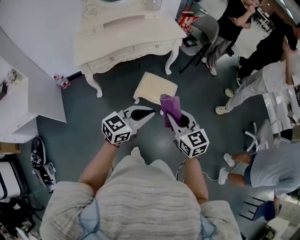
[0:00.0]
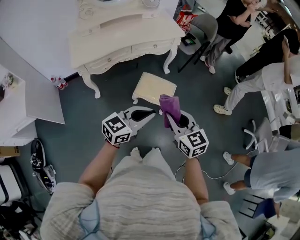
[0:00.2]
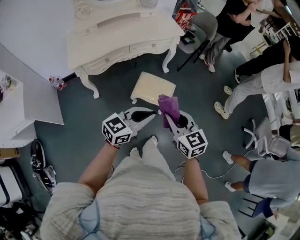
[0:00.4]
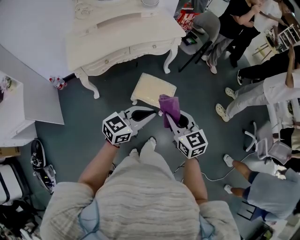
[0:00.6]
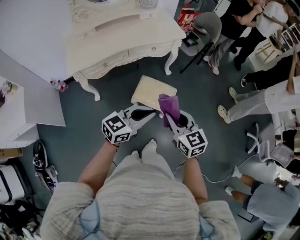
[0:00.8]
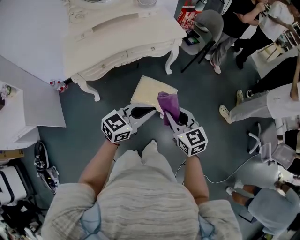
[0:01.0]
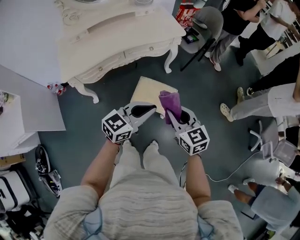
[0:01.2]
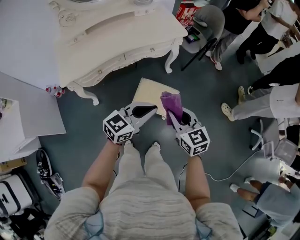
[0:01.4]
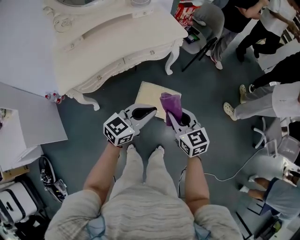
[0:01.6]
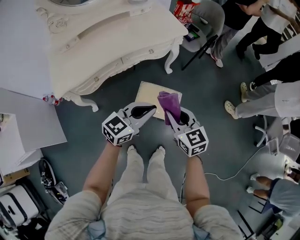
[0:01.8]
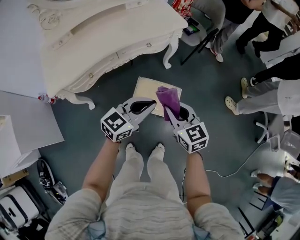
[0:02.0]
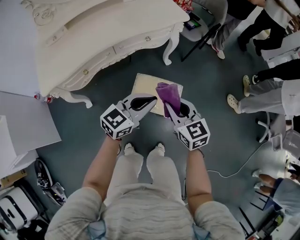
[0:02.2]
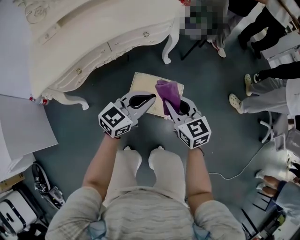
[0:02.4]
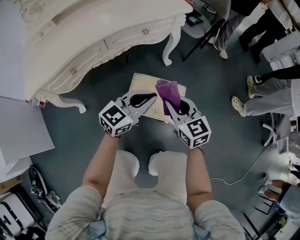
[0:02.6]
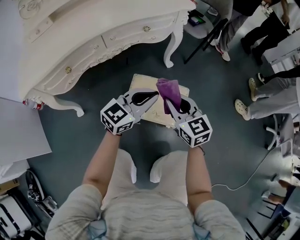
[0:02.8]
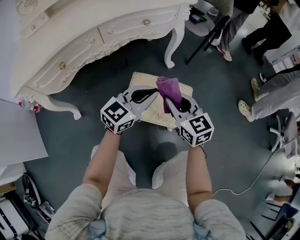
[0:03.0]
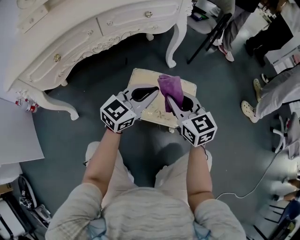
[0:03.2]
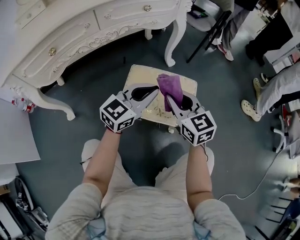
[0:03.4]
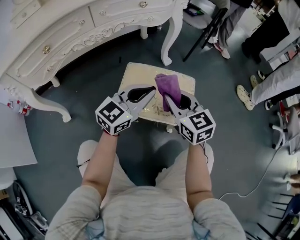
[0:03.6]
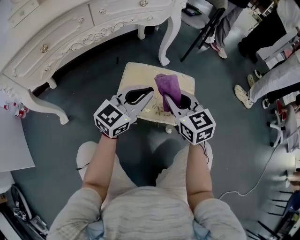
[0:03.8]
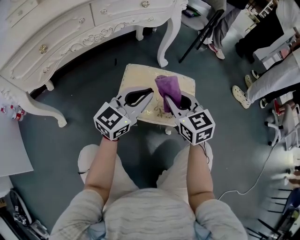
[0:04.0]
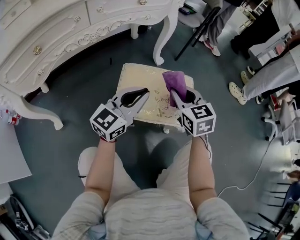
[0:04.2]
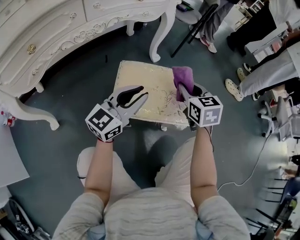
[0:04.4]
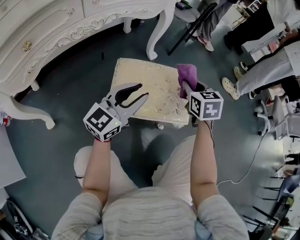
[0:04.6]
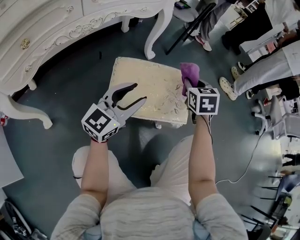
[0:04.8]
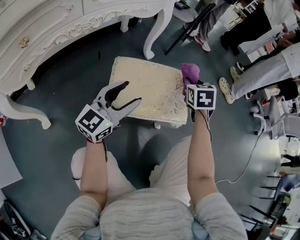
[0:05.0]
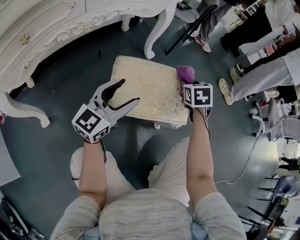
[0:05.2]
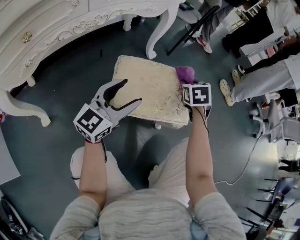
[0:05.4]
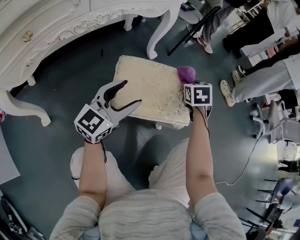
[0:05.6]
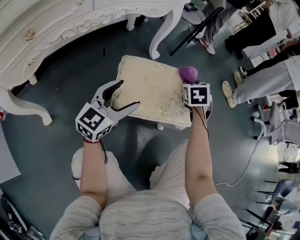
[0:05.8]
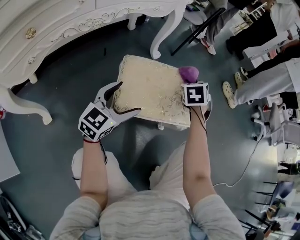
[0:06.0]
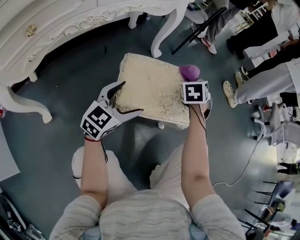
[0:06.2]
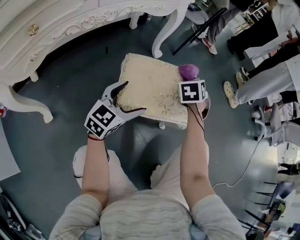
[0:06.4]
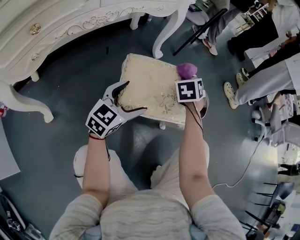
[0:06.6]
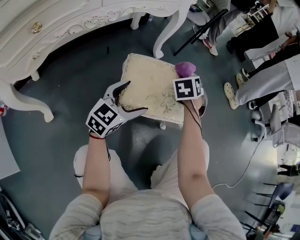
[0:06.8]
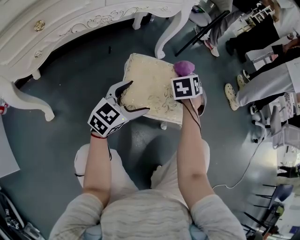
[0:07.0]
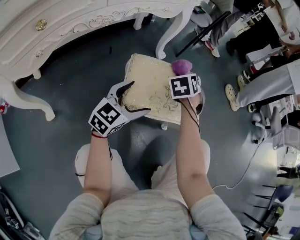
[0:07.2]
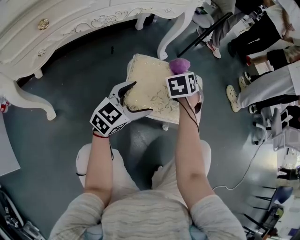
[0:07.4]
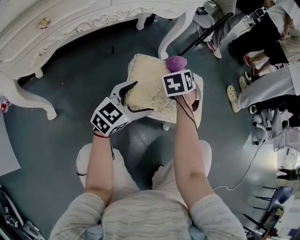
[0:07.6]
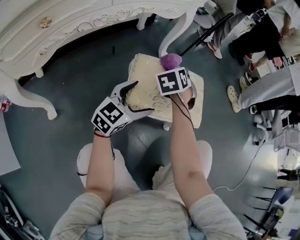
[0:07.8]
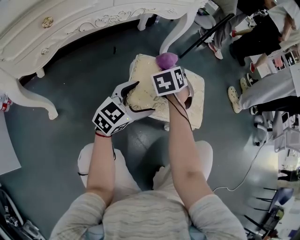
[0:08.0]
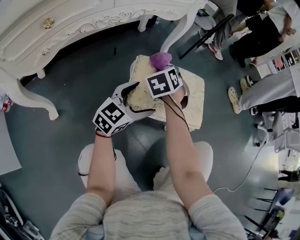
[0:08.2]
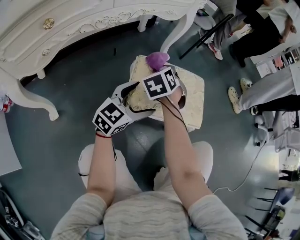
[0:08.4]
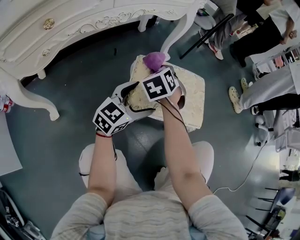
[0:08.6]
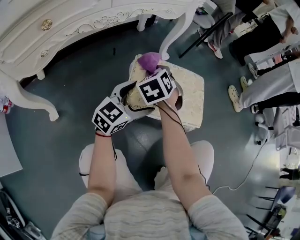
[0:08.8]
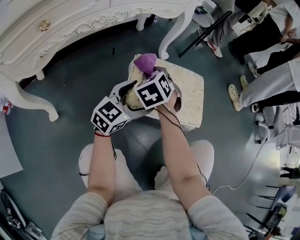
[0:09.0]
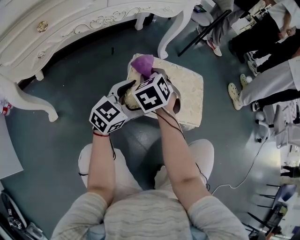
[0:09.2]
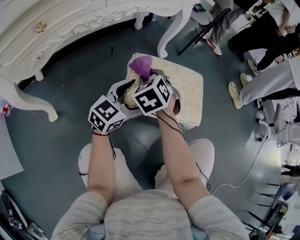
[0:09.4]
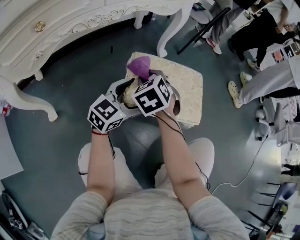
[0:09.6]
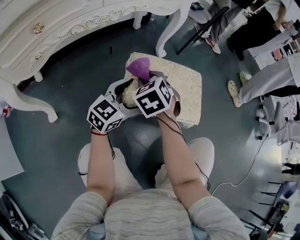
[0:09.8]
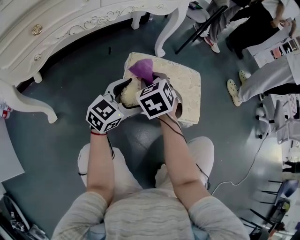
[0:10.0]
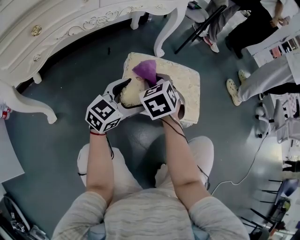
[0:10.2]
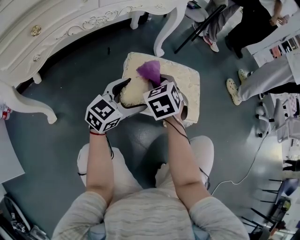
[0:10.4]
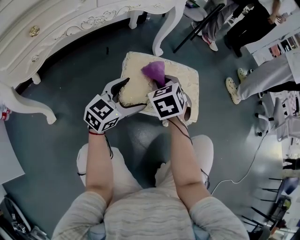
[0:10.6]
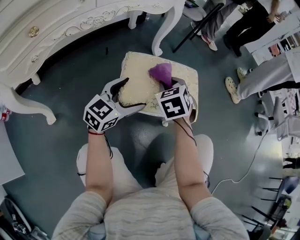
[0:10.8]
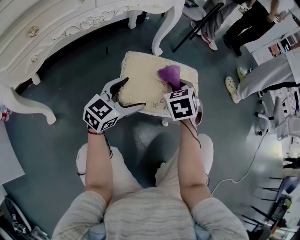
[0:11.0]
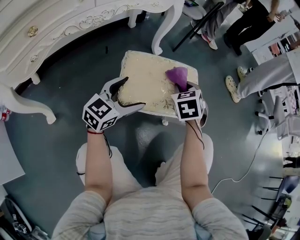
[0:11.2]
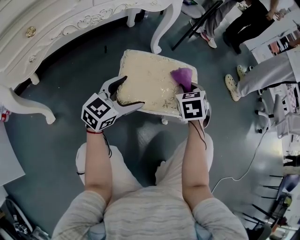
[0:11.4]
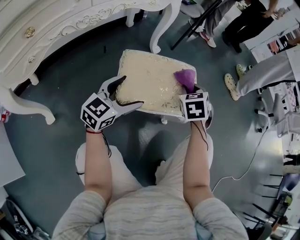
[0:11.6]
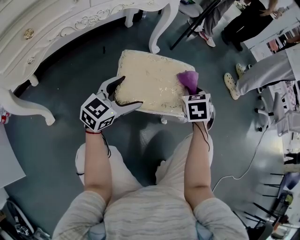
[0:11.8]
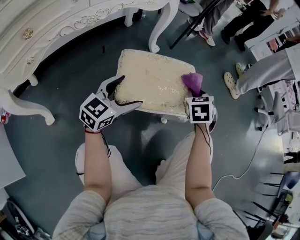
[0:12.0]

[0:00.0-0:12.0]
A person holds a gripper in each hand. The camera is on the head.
0:00.0 to 0:01.6: The grippers both shift forward by roughly 20 cm.
0:01.6 to 0:03.0: The grippers both shift downward by approximately 30 cm.
0:03.0 to 0:04.4: The right gripper is displaced downward, to the right and forward by some 15 cm, and swivels about 30 degrees, while the left gripper is displaced downward by some 10 cm.
0:04.4 to 0:06.0: The right gripper is displaced forward and downward by roughly 10 cm, and changes its angle by roughly 30 degrees; the left gripper shifts about 10 cm downward, and opens up.
0:06.0 to 0:07.6: The right gripper travels to the left and backward by some 10 cm.
0:07.6 to 0:09.0: The right gripper travels backward and to the left by some 15 cm.
0:09.0 to 0:10.4: The right gripper is displaced to the right by about 5 cm.
0:10.4 to 0:12.0: The right gripper shifts about 20 cm to the right, and changes its angle by some 20 degrees.

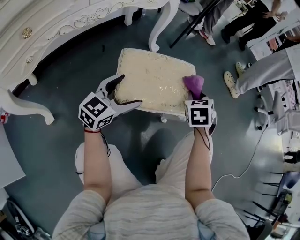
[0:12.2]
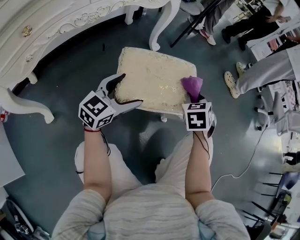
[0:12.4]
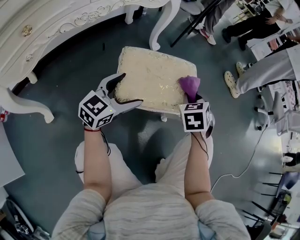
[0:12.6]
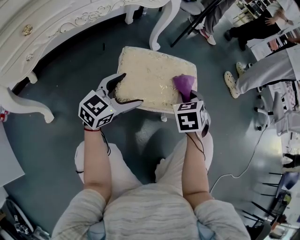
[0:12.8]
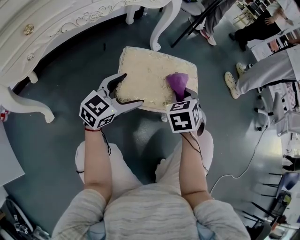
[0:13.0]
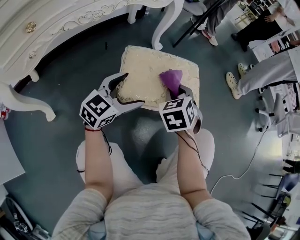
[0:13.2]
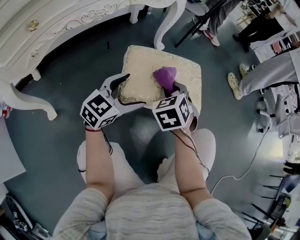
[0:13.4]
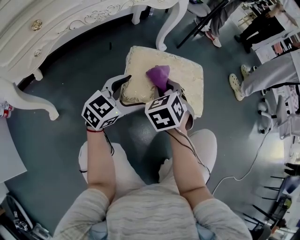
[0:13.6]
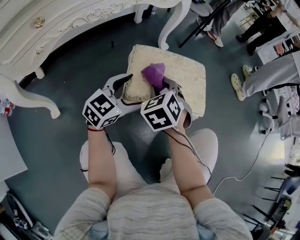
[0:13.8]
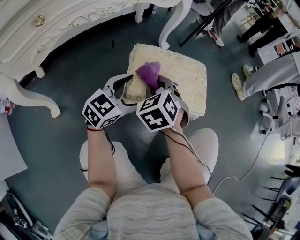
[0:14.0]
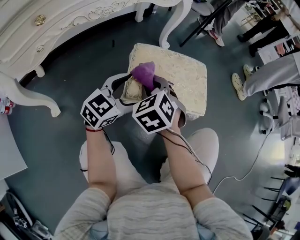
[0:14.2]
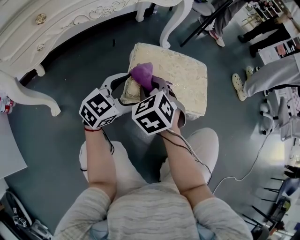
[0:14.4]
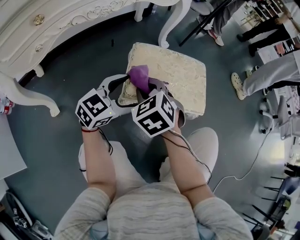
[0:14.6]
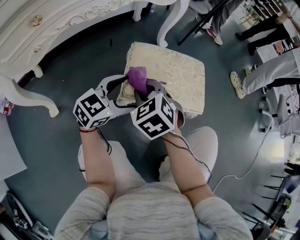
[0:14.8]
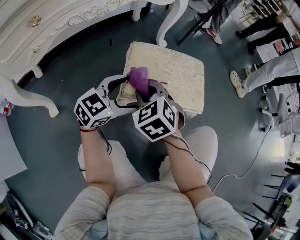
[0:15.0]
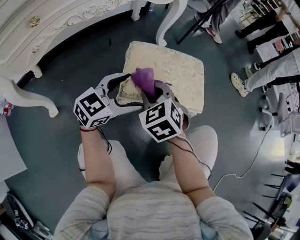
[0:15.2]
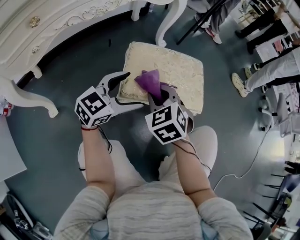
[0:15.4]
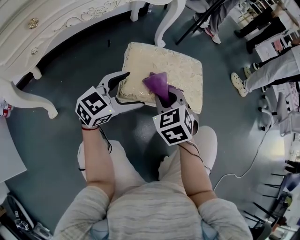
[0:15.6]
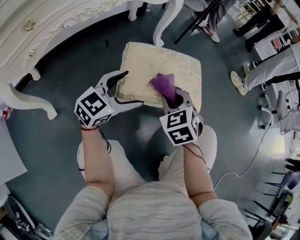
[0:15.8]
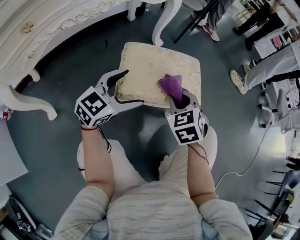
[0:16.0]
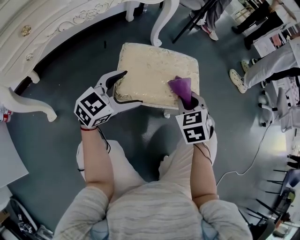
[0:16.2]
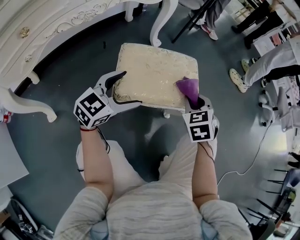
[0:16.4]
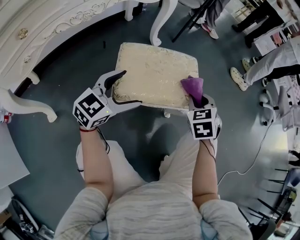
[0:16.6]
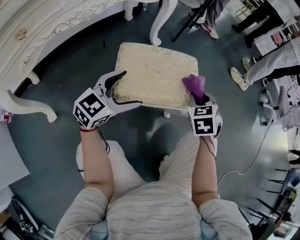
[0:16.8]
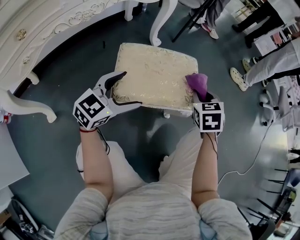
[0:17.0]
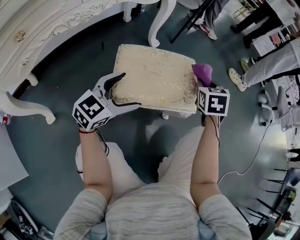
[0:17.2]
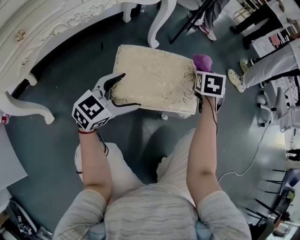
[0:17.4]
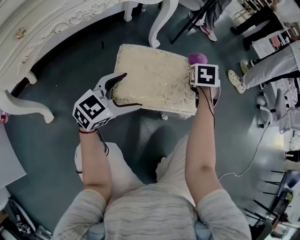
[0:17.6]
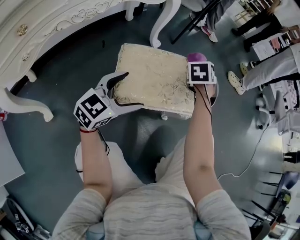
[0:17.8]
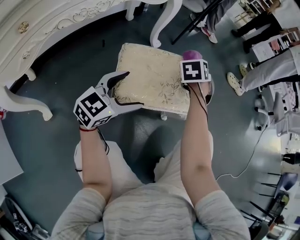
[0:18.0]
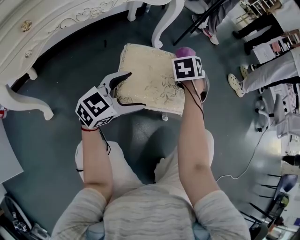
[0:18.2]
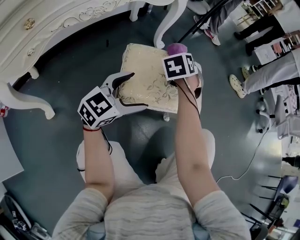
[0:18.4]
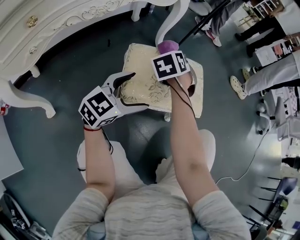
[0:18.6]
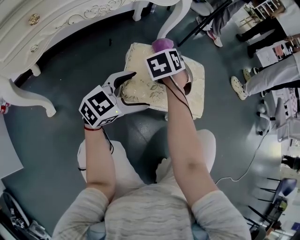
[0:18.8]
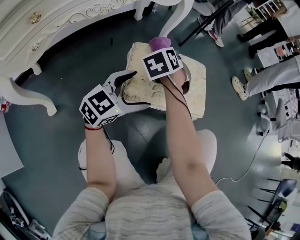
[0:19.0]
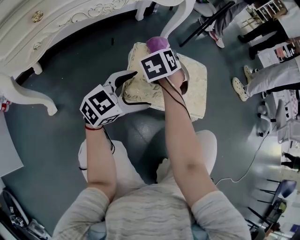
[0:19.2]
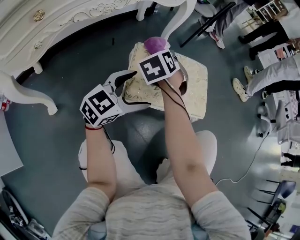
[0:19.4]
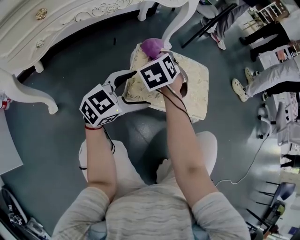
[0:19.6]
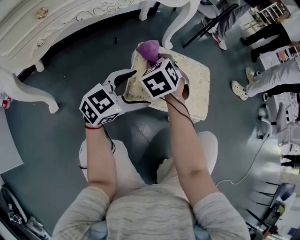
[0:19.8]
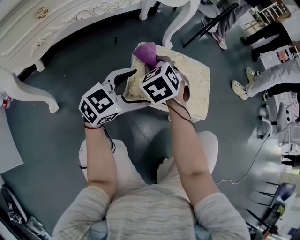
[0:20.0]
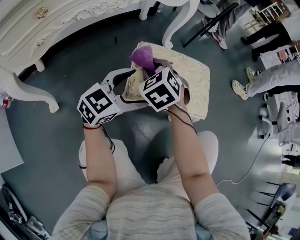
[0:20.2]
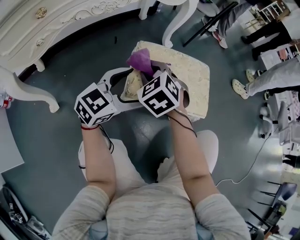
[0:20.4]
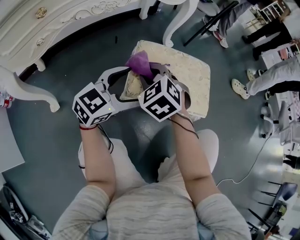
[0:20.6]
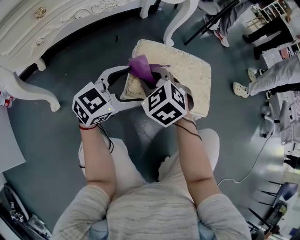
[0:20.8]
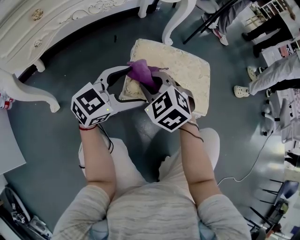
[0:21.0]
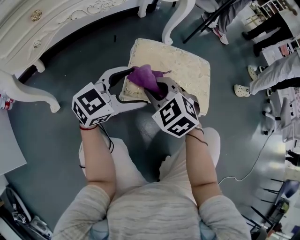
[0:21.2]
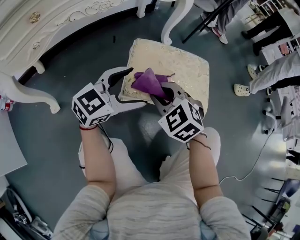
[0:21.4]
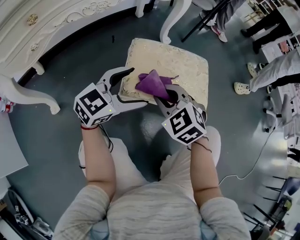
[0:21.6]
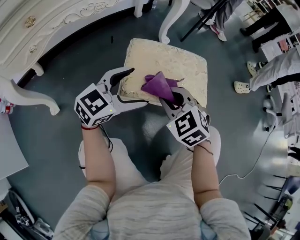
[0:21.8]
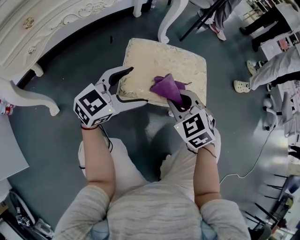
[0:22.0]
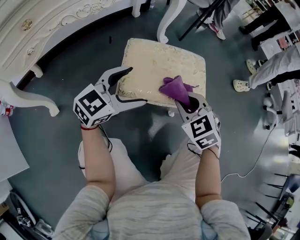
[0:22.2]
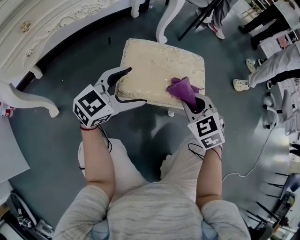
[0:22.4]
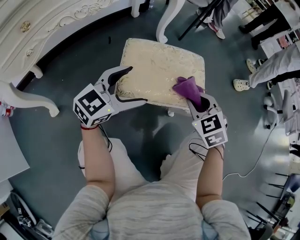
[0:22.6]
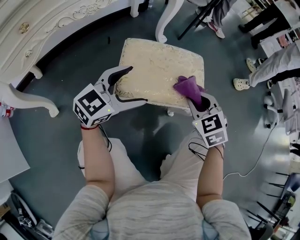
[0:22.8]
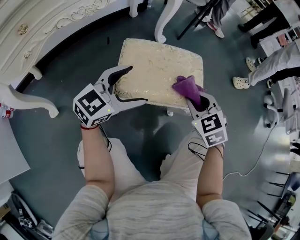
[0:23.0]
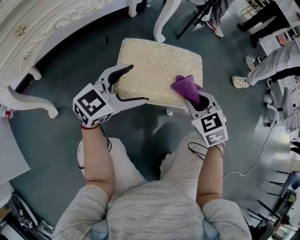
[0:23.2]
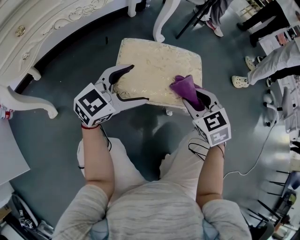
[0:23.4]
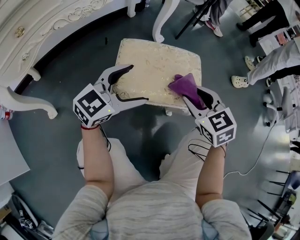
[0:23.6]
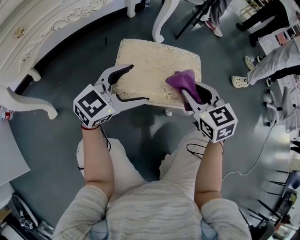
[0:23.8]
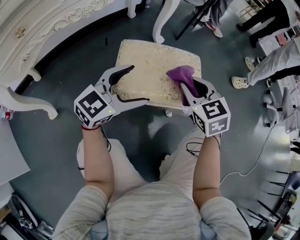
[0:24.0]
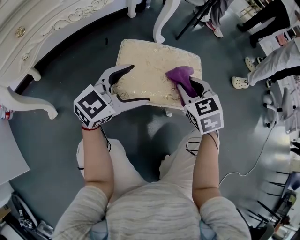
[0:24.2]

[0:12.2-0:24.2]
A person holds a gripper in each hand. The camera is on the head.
0:12.2 to 0:13.8: The right gripper travels to the left and backward by approximately 20 cm, and swivels some 20 degrees.
0:15.2 to 0:16.6: The right gripper travels to the right and forward by roughly 20 cm, and turns by approximately 30 degrees.
0:16.6 to 0:18.2: The right gripper travels to the left and forward by approximately 15 cm.
0:18.2 to 0:19.8: The right gripper moves to the left and backward, about 20 cm, and rotates approximately 30 degrees.
0:19.8 to 0:21.2: The right gripper goes about 10 cm backward, and rotates about 20 degrees.
0:21.2 to 0:22.6: The right gripper is displaced to the right by approximately 20 cm, and turns by roughly 20 degrees.
0:22.6 to 0:24.2: The right gripper ends up about 5 cm from where it was.
